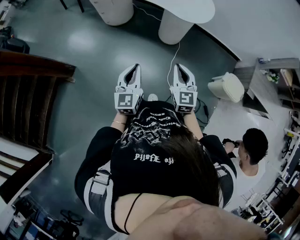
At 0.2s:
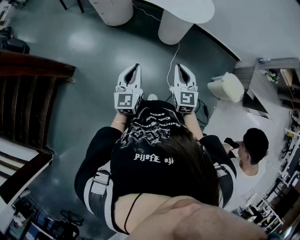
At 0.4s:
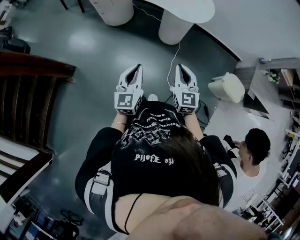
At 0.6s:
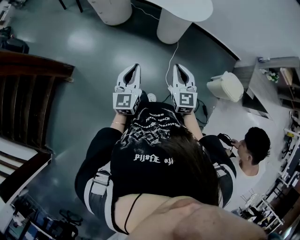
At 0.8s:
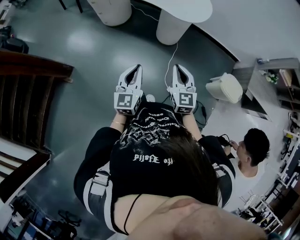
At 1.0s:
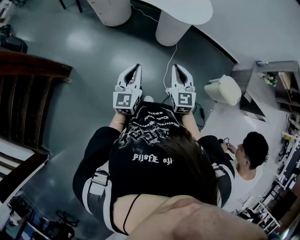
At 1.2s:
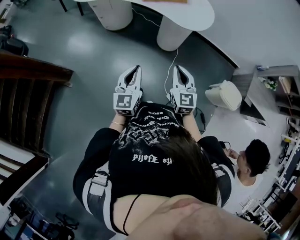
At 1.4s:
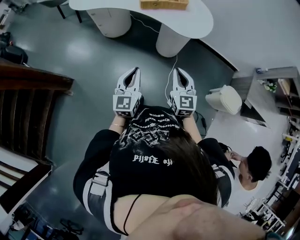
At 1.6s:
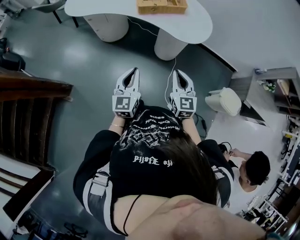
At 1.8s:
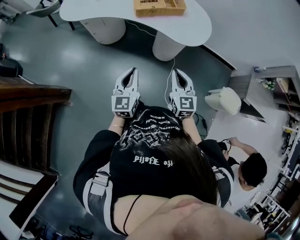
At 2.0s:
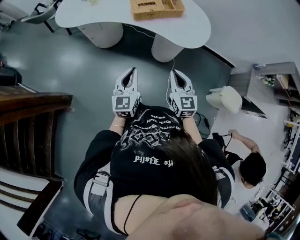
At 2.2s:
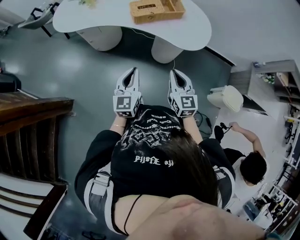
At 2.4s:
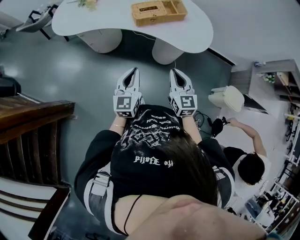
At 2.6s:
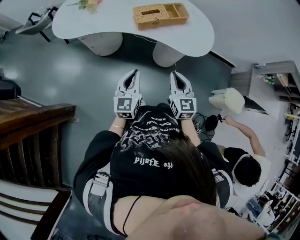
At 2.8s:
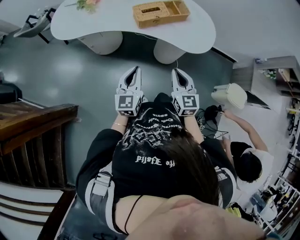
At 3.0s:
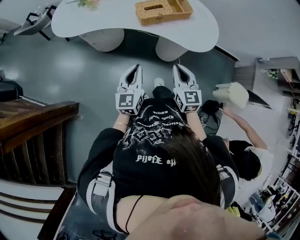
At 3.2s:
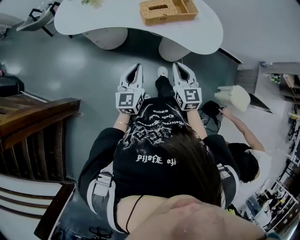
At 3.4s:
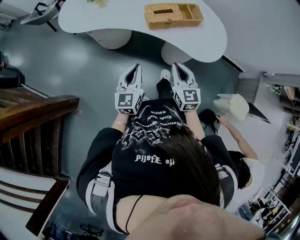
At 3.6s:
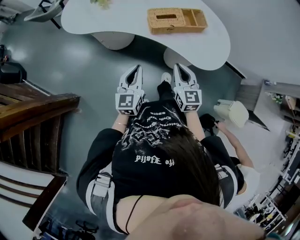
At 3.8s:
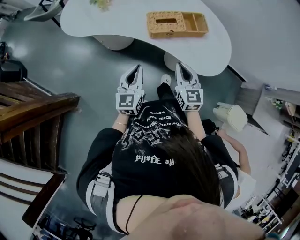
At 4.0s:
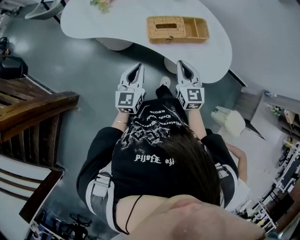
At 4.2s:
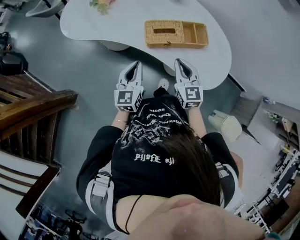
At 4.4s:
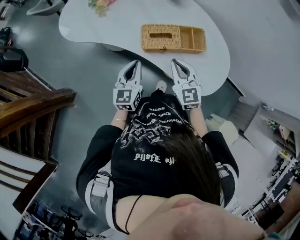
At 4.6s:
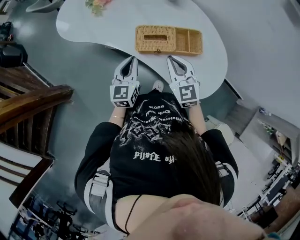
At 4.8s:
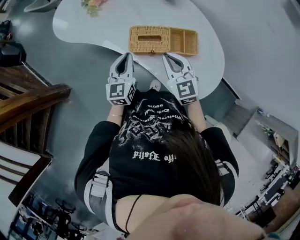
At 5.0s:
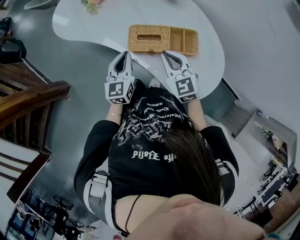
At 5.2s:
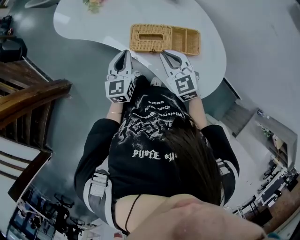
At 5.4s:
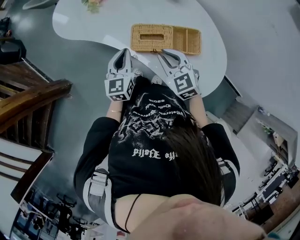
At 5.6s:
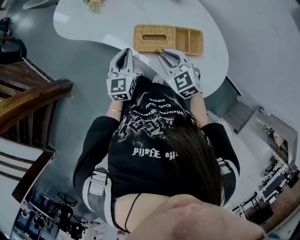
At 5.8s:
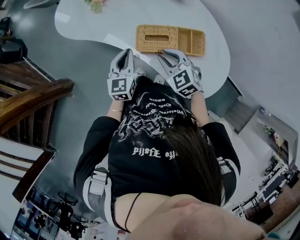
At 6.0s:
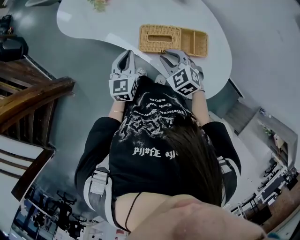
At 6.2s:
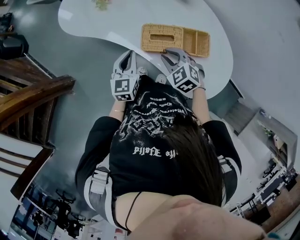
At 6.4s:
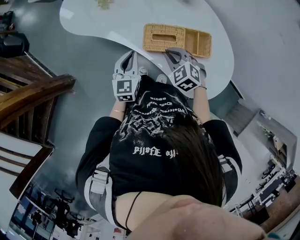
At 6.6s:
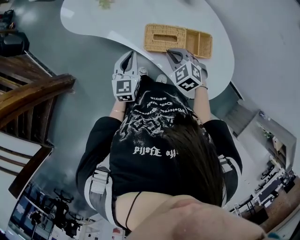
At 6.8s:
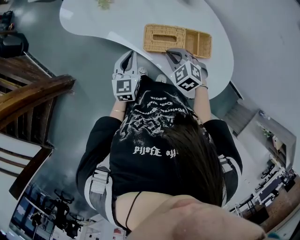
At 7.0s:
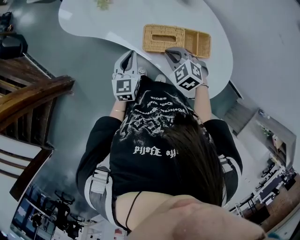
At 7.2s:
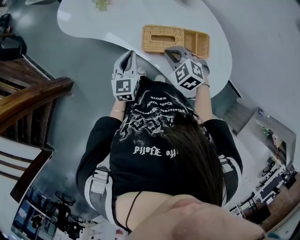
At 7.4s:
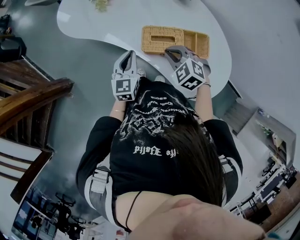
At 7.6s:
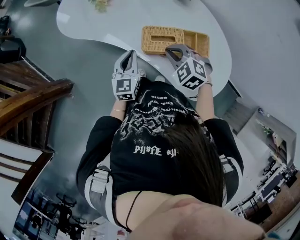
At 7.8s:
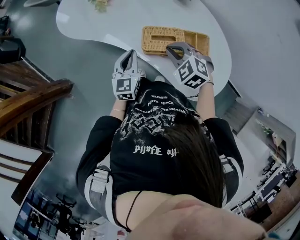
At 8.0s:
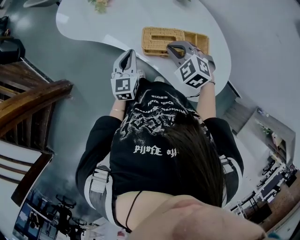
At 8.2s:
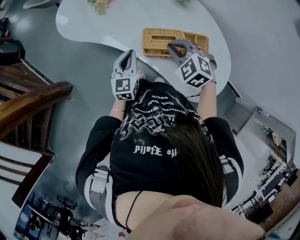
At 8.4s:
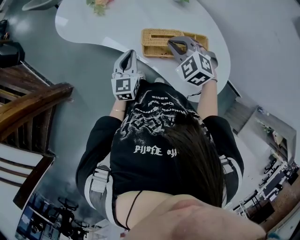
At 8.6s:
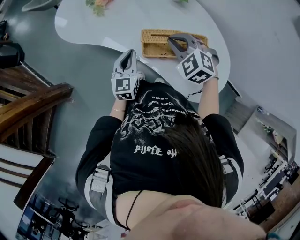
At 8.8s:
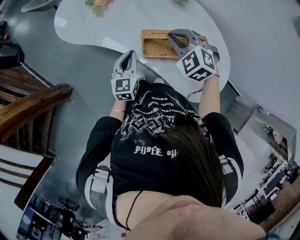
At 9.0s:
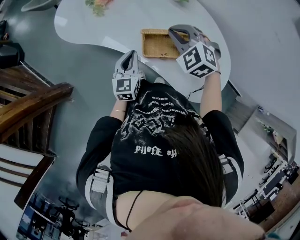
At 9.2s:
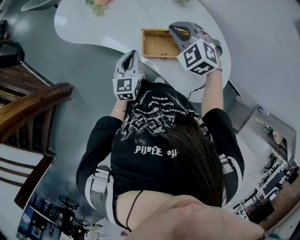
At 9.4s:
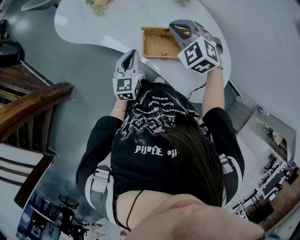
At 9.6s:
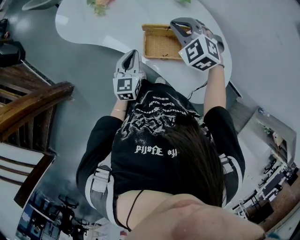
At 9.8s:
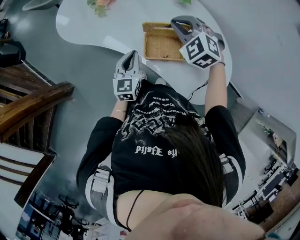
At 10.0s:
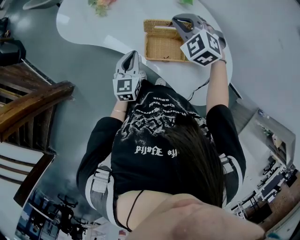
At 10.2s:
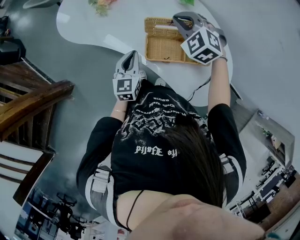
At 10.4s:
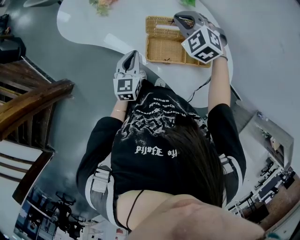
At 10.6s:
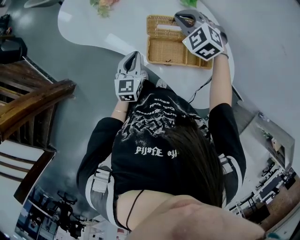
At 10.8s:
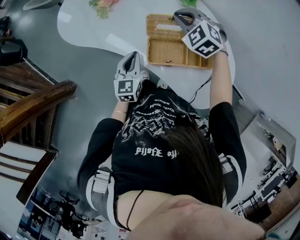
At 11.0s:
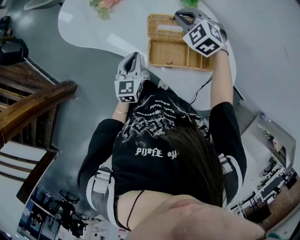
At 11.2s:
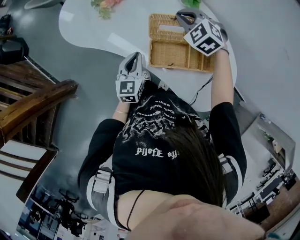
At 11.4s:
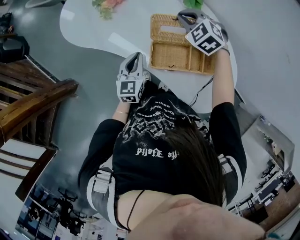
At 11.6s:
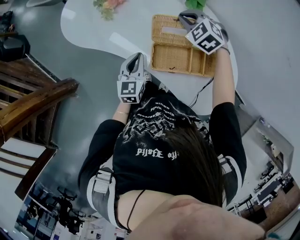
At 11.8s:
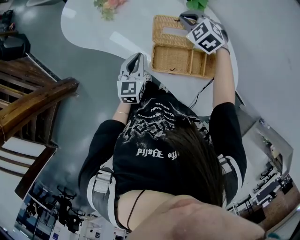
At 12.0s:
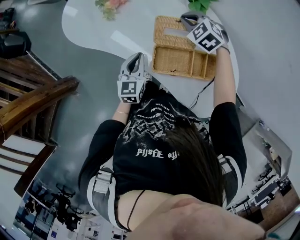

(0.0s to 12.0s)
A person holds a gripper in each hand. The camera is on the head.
0.0s - 1.6s: The two grippers go about 15 cm forward.
1.6s - 3.0s: Both grippers move forward and to the left, some 20 cm.
3.0s - 4.4s: Both grippers travel together forward, roughly 25 cm. The right gripper turns by approximately 30 degrees.
4.4s - 6.0s: The grippers both shift forward by about 5 cm. The right gripper rotates about 30 degrees, and opens its fingers.
6.0s - 7.6s: The grippers move only a little.
7.6s - 9.0s: The right gripper shifts approximately 10 cm forward and upward.
9.0s - 10.4s: The right gripper goes about 10 cm forward.
10.4s - 12.0s: The right gripper travels forward and downward by approximately 10 cm.

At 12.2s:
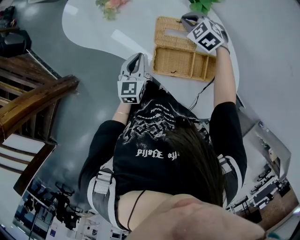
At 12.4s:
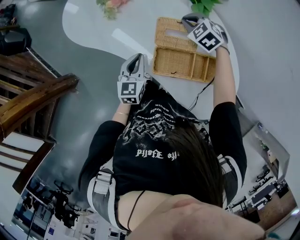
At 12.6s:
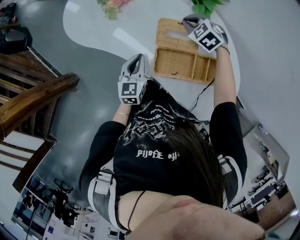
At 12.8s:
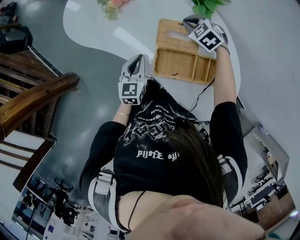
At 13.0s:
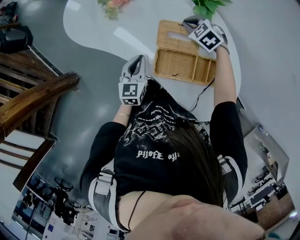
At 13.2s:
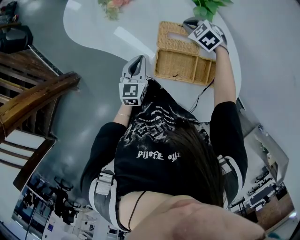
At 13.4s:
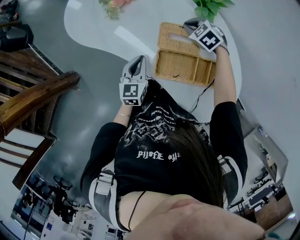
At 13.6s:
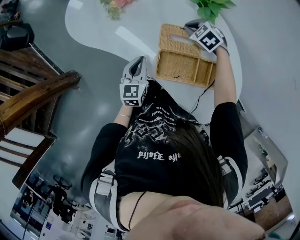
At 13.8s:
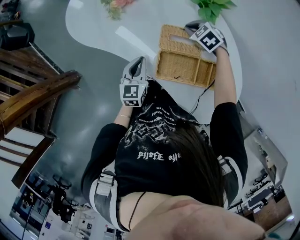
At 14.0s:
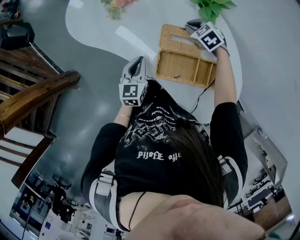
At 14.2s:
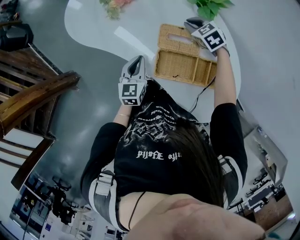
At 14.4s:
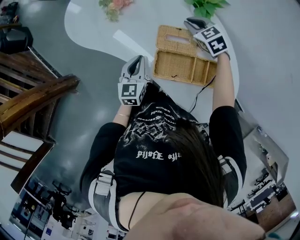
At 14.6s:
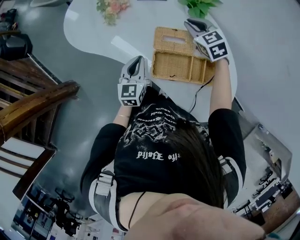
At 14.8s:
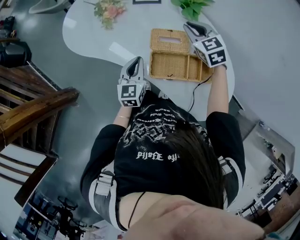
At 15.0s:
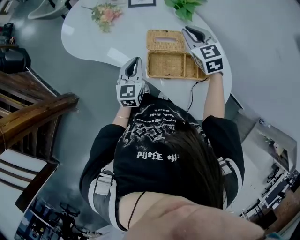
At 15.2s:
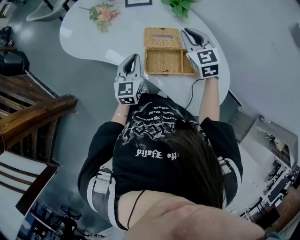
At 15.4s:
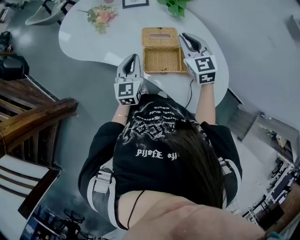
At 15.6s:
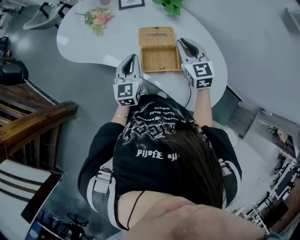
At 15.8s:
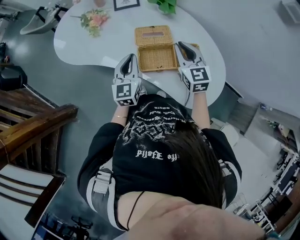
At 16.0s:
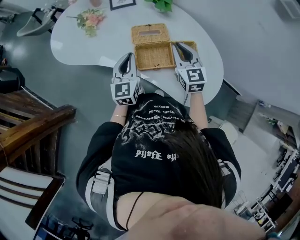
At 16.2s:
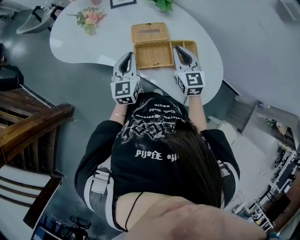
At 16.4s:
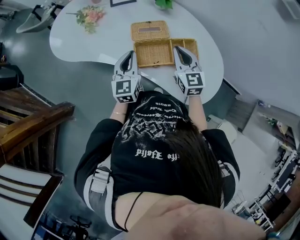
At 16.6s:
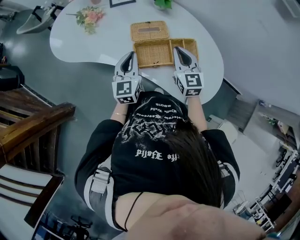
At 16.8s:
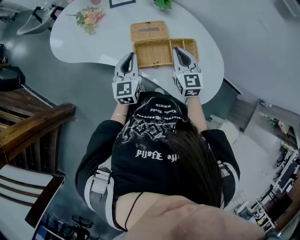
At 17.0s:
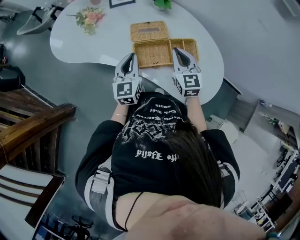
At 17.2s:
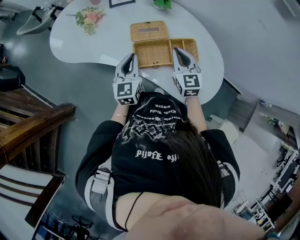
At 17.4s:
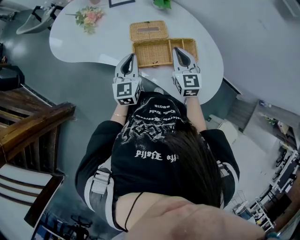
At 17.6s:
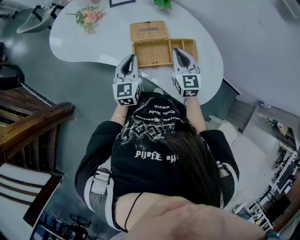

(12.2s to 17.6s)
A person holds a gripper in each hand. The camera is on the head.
12.2s - 13.6s: The right gripper travels downward by some 5 cm.
13.6s - 15.0s: The left gripper heads upward, covering about 5 cm; the right gripper goes roughly 20 cm upward and backward, and turns by roughly 40 degrees.
15.0s - 16.2s: The right gripper shifts approximately 15 cm backward, and turns by some 20 degrees; the left gripper moves some 5 cm.
16.2s - 17.6s: The grippers move only a little.

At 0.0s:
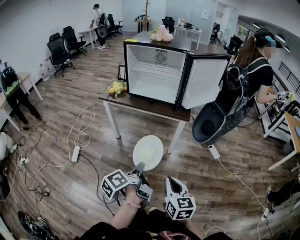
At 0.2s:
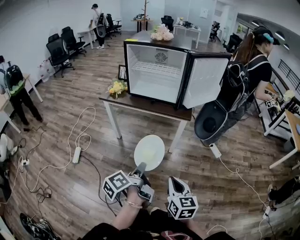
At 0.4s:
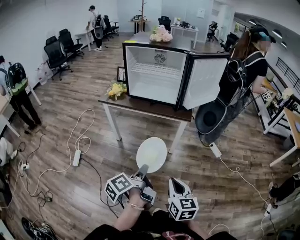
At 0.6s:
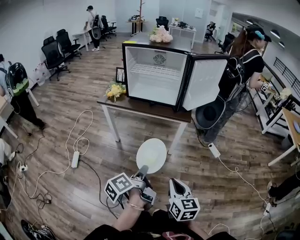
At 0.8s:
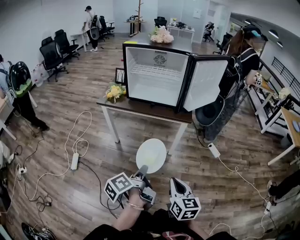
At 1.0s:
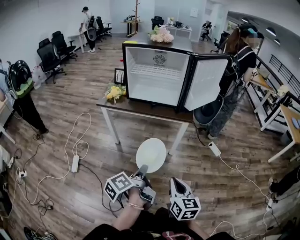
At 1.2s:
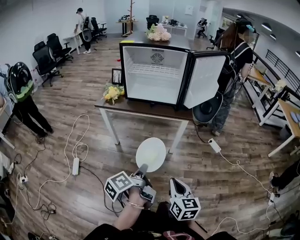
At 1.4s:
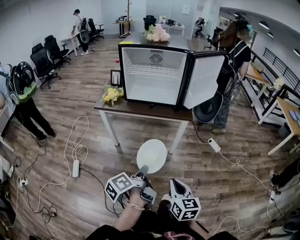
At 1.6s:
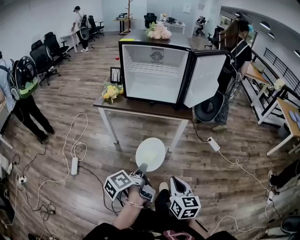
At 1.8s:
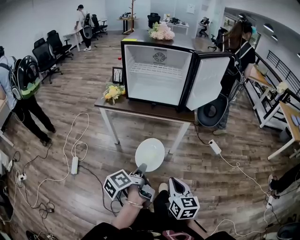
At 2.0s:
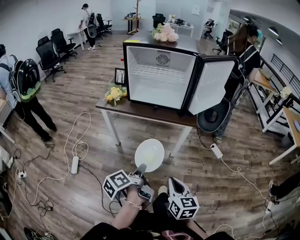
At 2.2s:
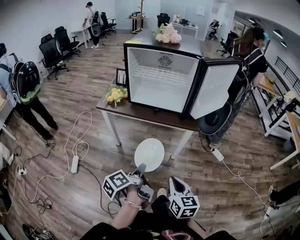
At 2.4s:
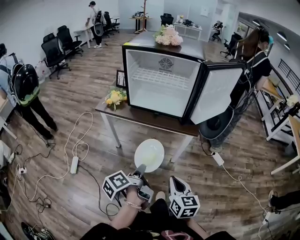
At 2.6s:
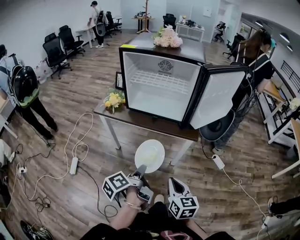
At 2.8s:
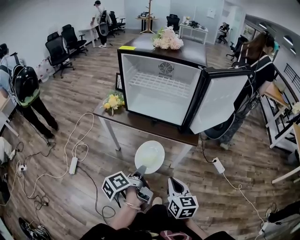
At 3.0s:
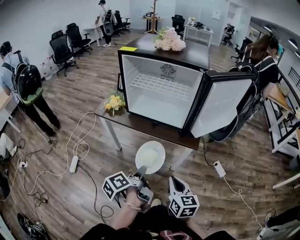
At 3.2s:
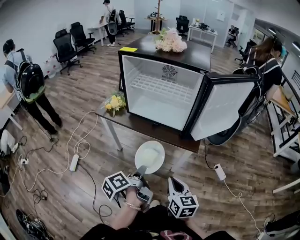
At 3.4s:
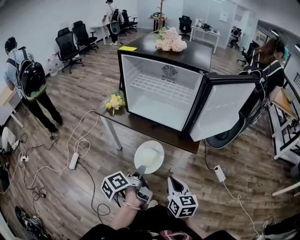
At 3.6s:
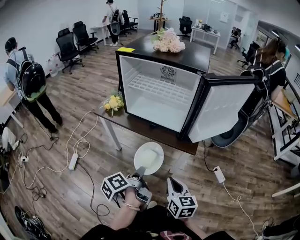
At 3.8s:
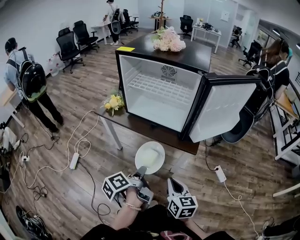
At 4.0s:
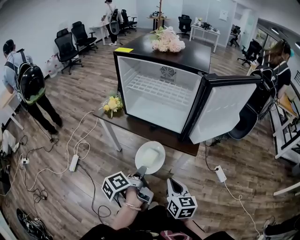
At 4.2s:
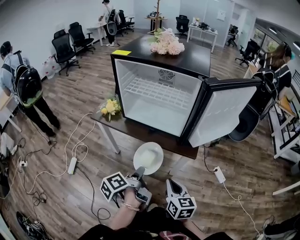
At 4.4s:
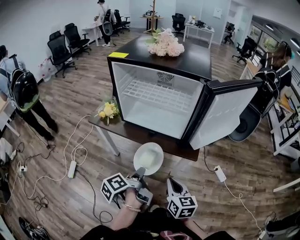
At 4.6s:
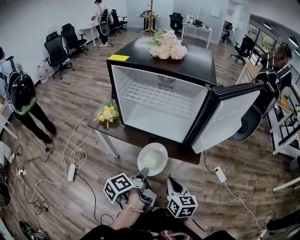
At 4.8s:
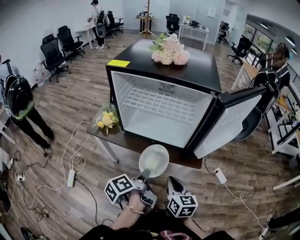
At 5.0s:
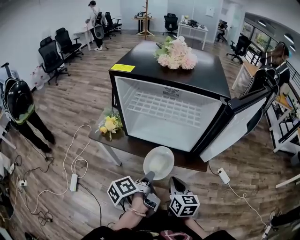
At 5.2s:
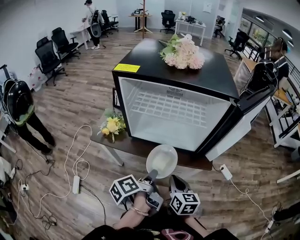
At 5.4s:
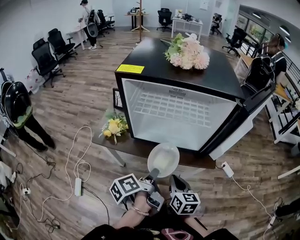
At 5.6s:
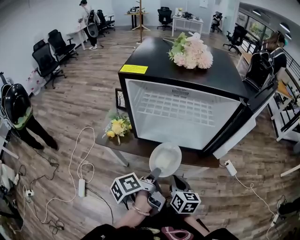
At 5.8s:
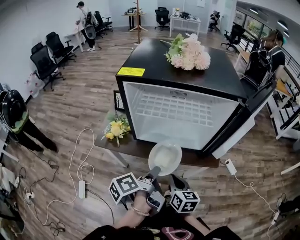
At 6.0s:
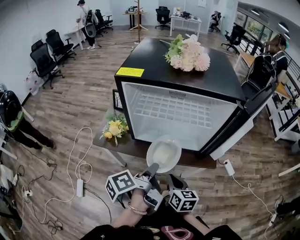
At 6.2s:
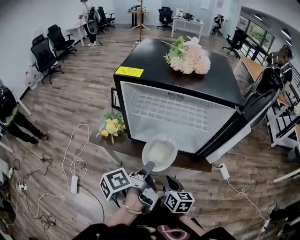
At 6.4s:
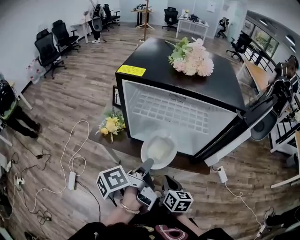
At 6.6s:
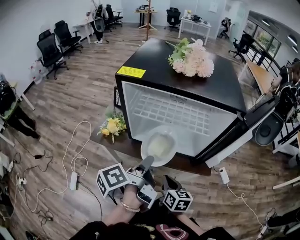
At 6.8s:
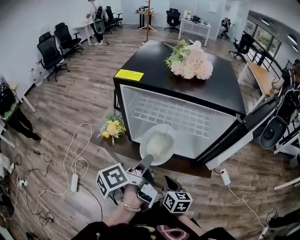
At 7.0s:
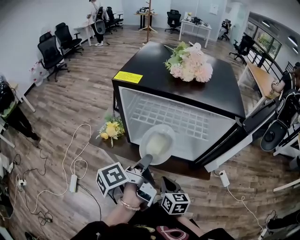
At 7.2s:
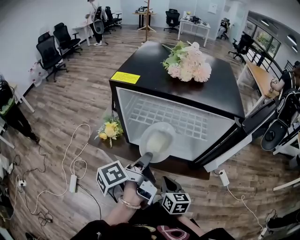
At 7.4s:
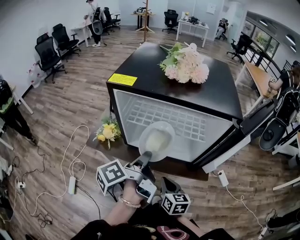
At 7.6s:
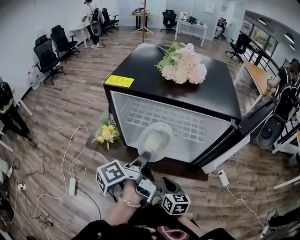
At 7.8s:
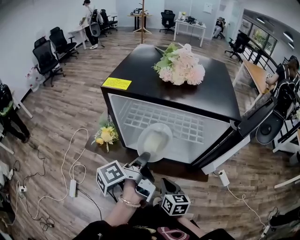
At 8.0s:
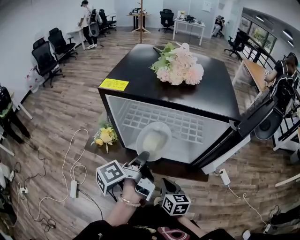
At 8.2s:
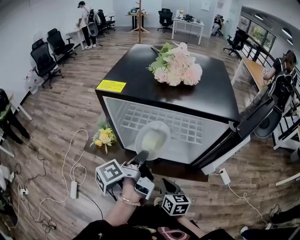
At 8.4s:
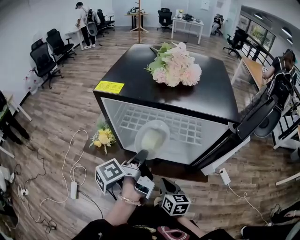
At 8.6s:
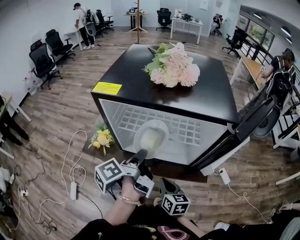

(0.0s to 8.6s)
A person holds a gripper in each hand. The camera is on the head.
0.0s - 1.4s: The right gripper changes place by some 10 cm.
1.4s - 2.8s: The right gripper changes place by about 20 cm.
2.8s - 4.4s: The right gripper shifts by roughly 10 cm.
4.4s - 5.8s: The right gripper changes place by roughly 15 cm.
